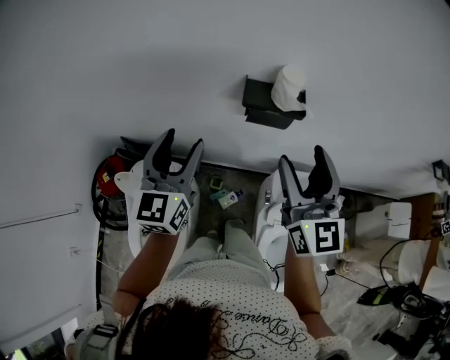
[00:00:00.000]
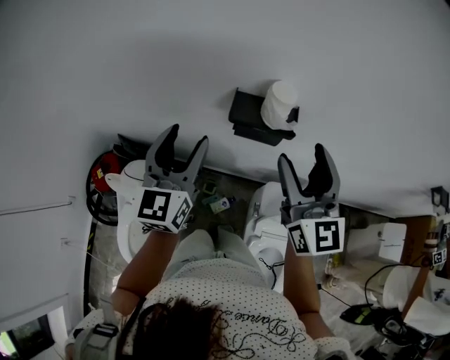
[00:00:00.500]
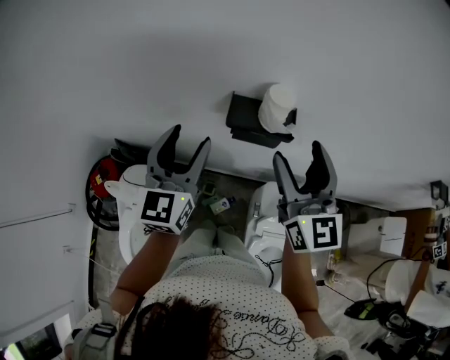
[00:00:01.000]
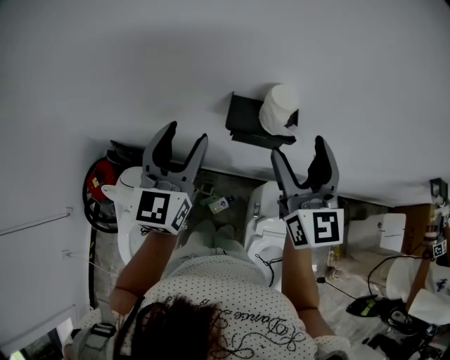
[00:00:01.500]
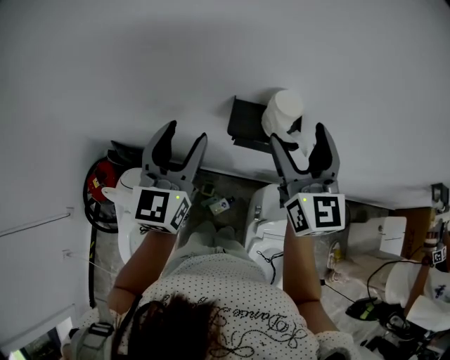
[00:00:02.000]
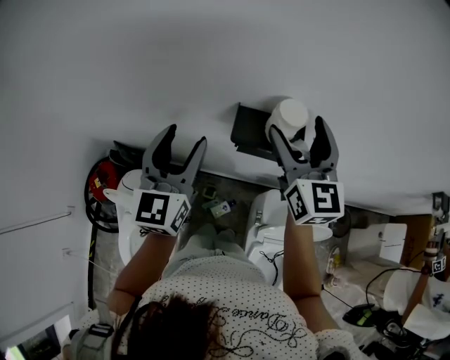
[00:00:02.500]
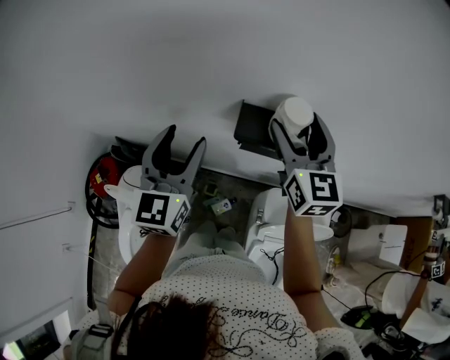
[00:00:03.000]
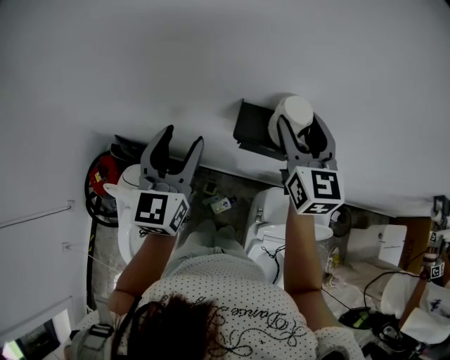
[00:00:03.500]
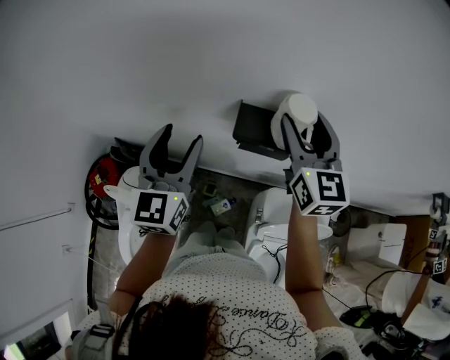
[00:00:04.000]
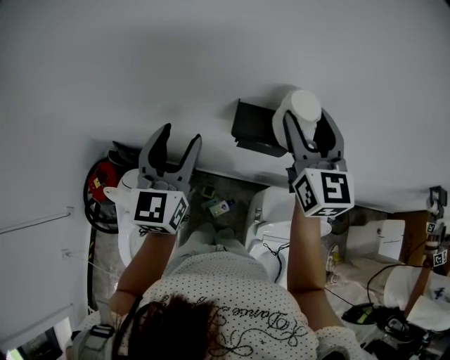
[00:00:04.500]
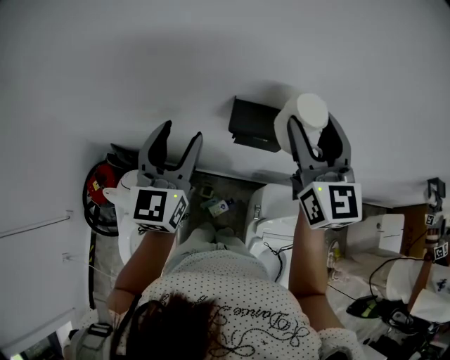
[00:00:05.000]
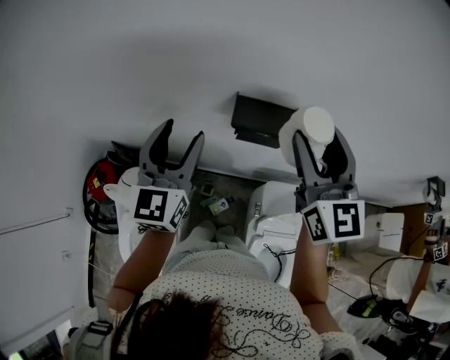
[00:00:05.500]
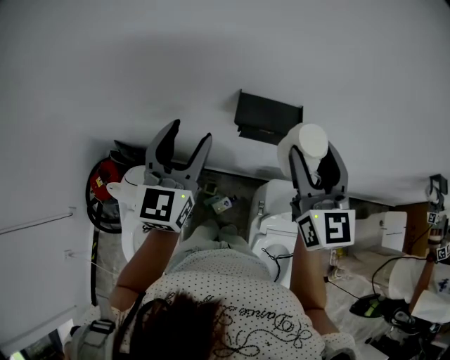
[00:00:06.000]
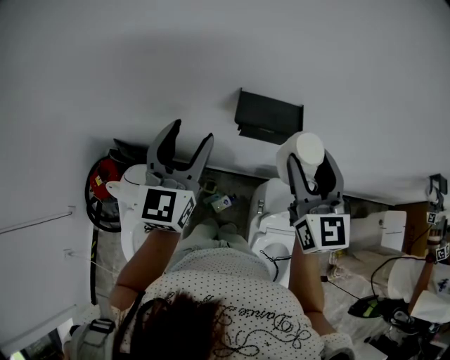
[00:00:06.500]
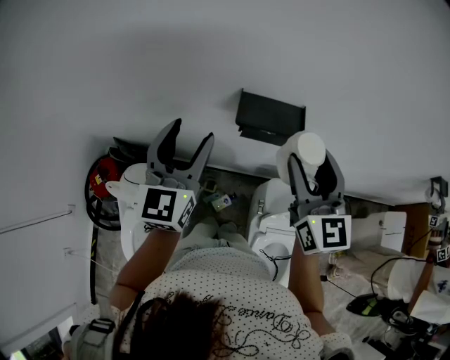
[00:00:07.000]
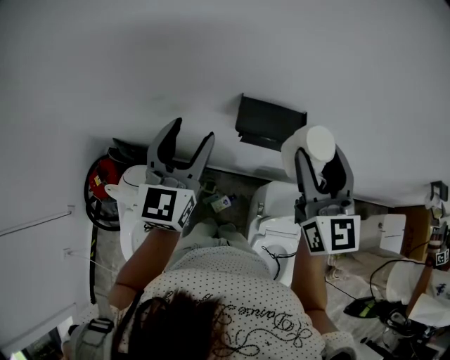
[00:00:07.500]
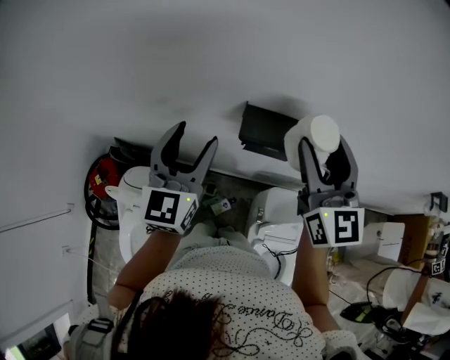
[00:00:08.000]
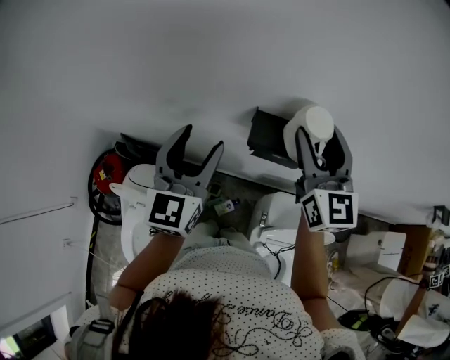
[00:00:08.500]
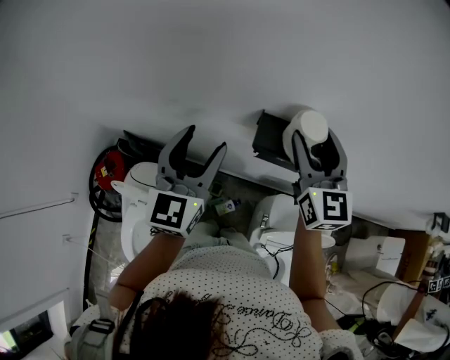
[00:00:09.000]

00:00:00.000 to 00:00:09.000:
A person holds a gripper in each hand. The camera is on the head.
00:00:00.000 to 00:00:02.000: The two grippers go roughly 10 cm forward.
00:00:02.000 to 00:00:04.500: The right gripper closes.
00:00:04.500 to 00:00:07.000: The right gripper heads backward, covering approximately 10 cm.
00:00:07.000 to 00:00:09.000: The right gripper moves forward, roughly 10 cm.

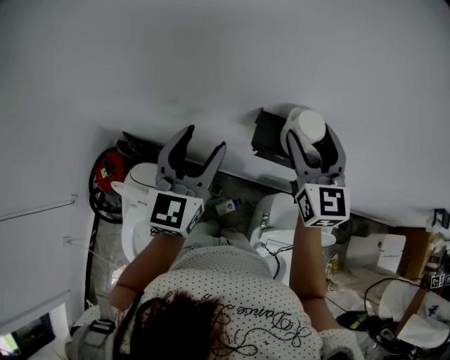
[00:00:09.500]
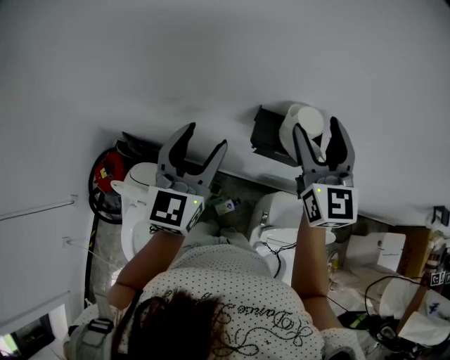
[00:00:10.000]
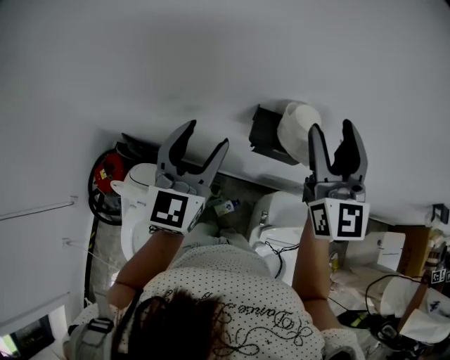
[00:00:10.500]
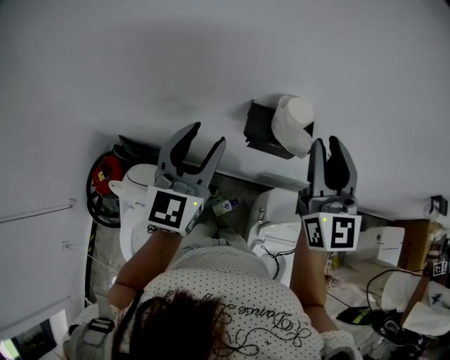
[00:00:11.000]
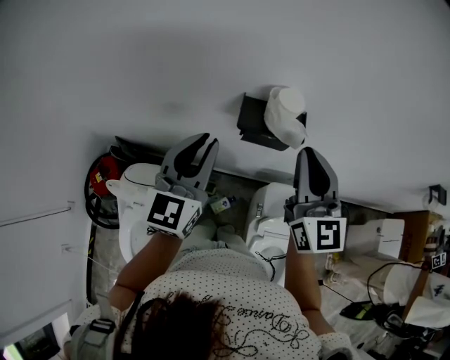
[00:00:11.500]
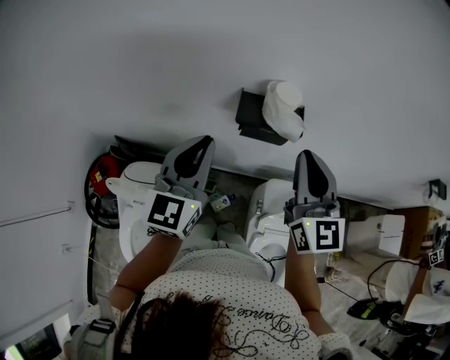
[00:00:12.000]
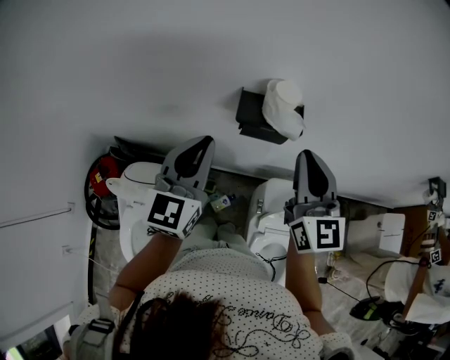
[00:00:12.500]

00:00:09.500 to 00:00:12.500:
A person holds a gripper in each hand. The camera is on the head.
00:00:09.500 to 00:00:11.000: The right gripper goes about 10 cm backward and upward, and closes up.
00:00:11.000 to 00:00:12.500: The left gripper closes up. Meanwhile the right gripper travels downward by approximately 5 cm.

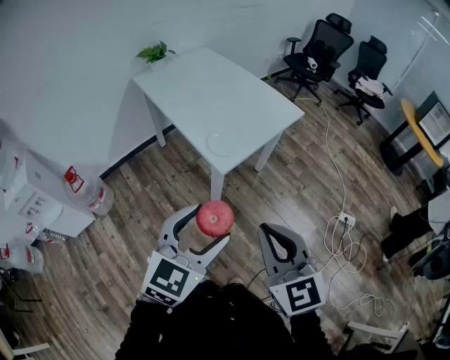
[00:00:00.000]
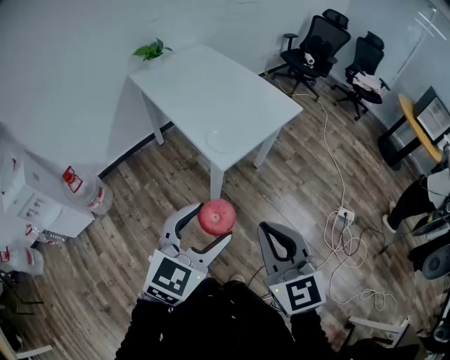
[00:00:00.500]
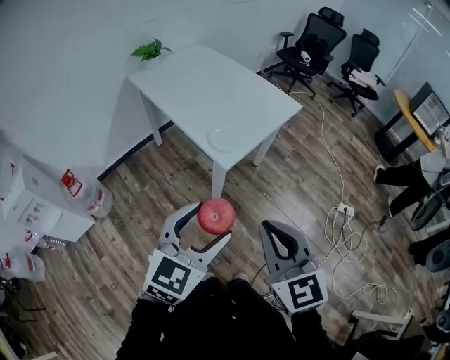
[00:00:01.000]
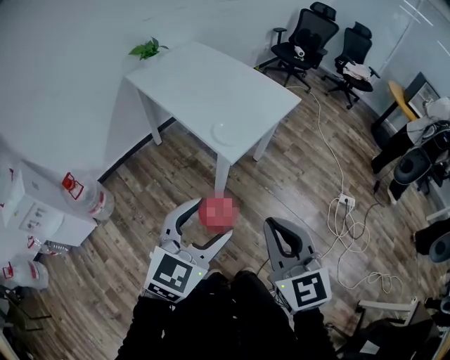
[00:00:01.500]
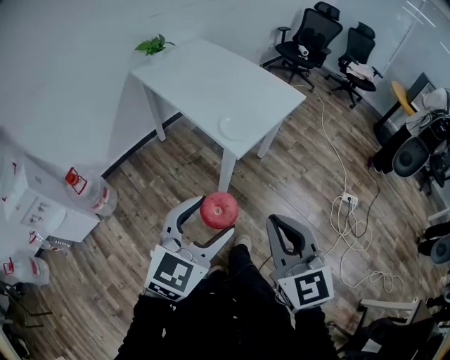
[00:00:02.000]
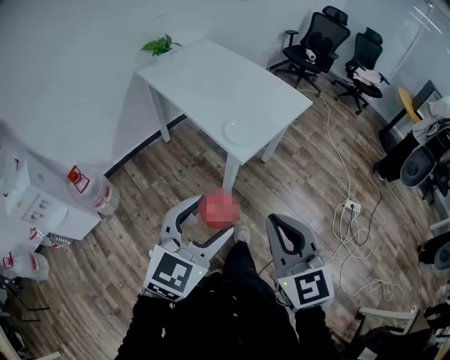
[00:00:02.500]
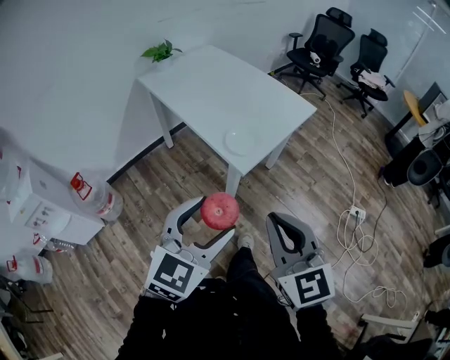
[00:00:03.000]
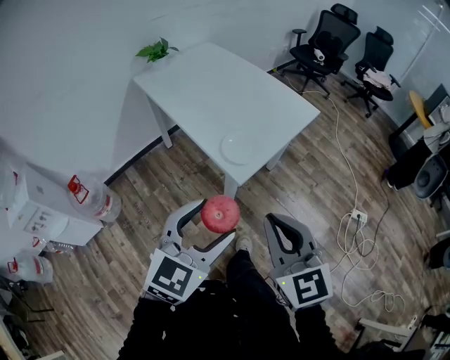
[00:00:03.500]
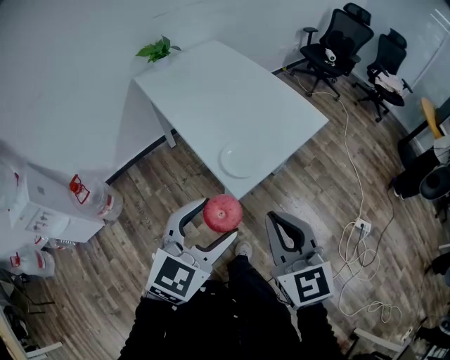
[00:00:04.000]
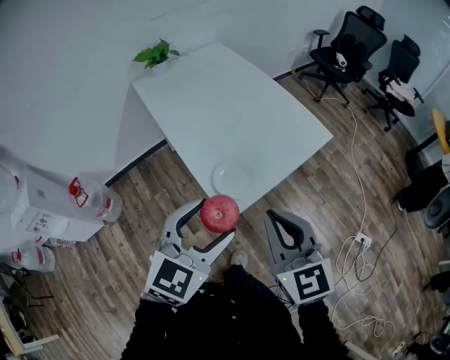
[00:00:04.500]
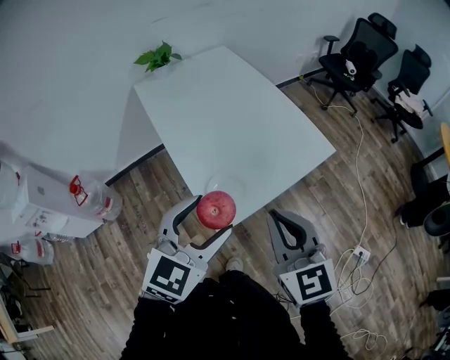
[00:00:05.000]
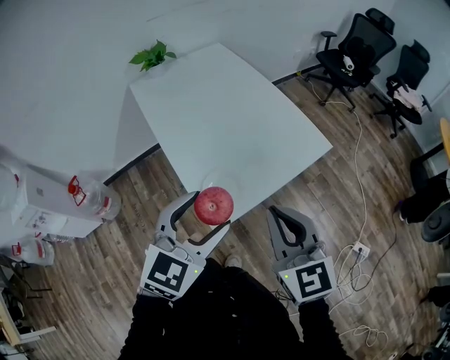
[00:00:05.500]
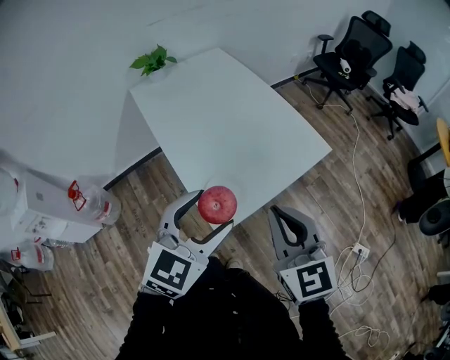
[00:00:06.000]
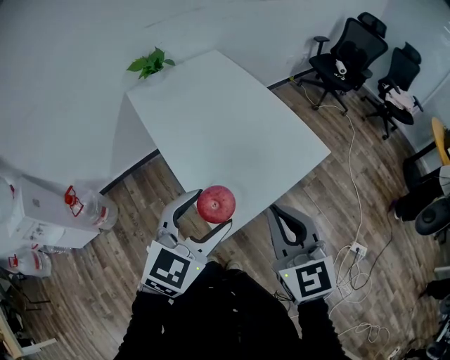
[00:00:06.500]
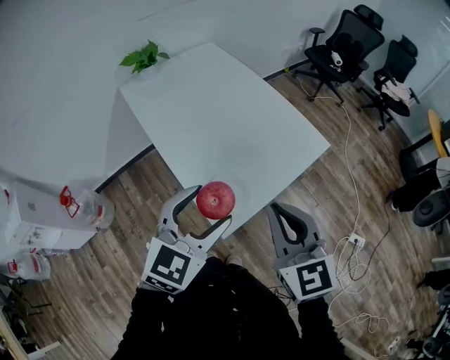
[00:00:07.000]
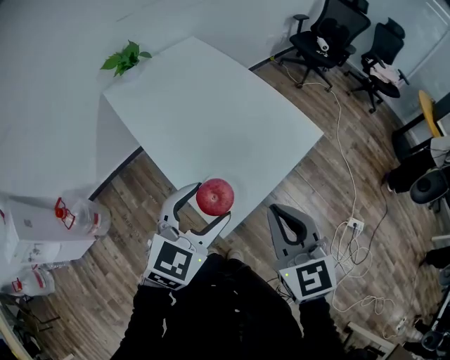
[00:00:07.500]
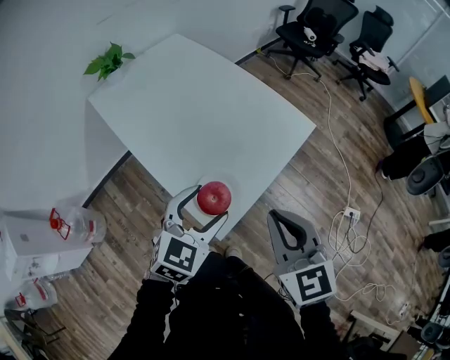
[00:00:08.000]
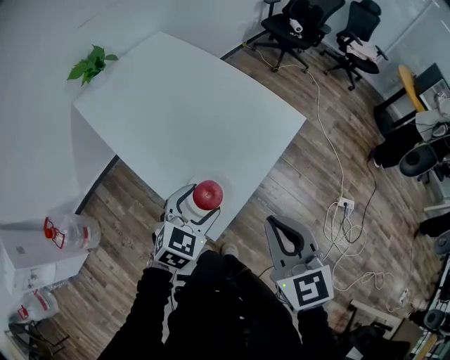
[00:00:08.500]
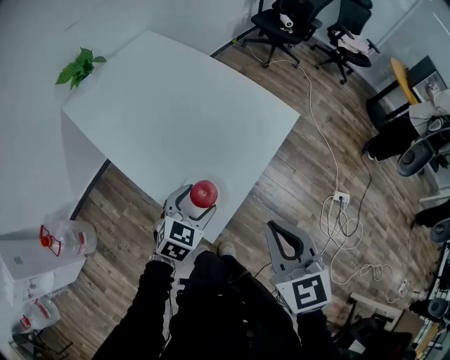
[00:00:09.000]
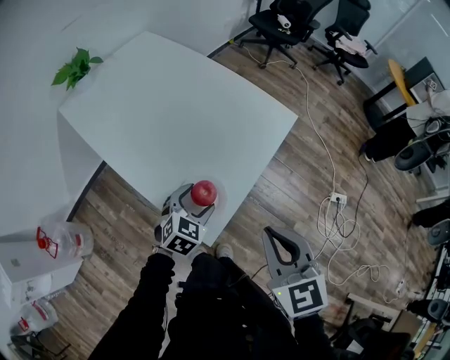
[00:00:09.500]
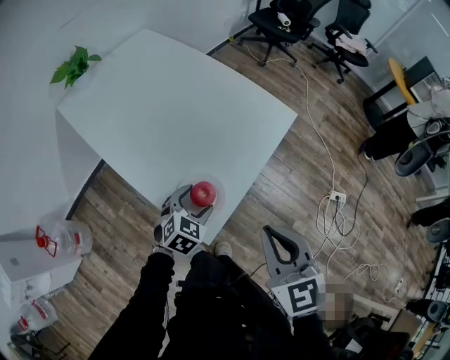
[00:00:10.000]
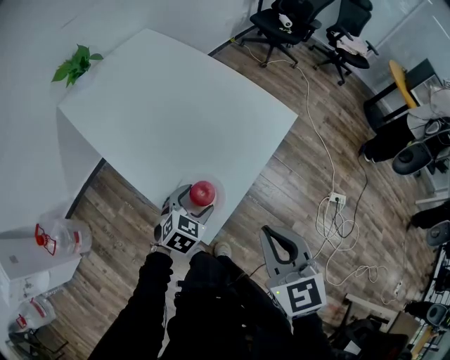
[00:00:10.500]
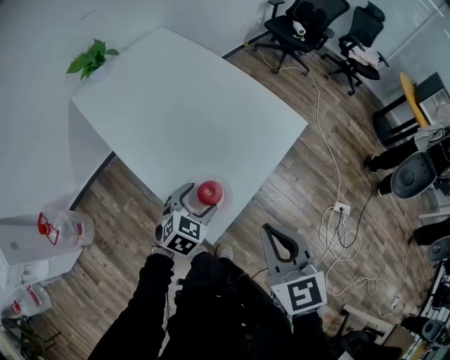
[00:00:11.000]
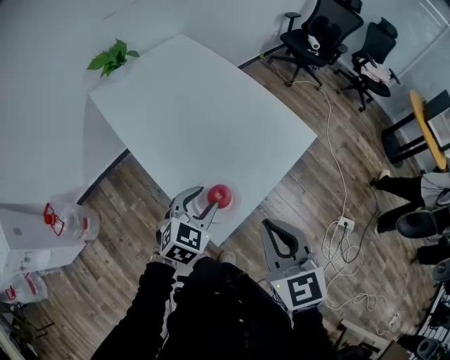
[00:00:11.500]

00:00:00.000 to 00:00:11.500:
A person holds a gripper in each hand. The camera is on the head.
00:00:00.000 to 00:00:02.000: The right gripper goes approximately 10 cm to the left and backward, while the left gripper heads to the left, covering about 5 cm.
00:00:02.000 to 00:00:04.000: The grippers both shift forward by about 20 cm.
00:00:04.000 to 00:00:06.000: The left gripper shifts about 15 cm forward. Meanwhile the right gripper is displaced forward and to the right by roughly 20 cm.
00:00:06.000 to 00:00:07.500: The left gripper moves approximately 5 cm.
00:00:07.500 to 00:00:09.500: The left gripper travels downward by approximately 20 cm, and rotates about 20 degrees. Meanwhile the right gripper shifts by roughly 5 cm.
00:00:09.500 to 00:00:11.500: The left gripper travels upward by approximately 10 cm, and closes.

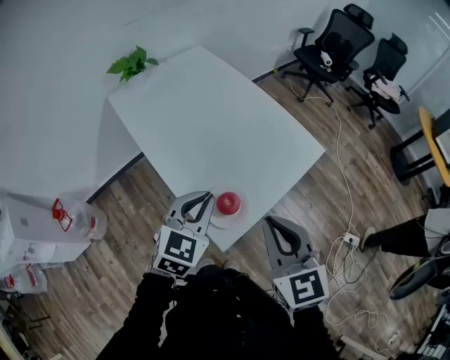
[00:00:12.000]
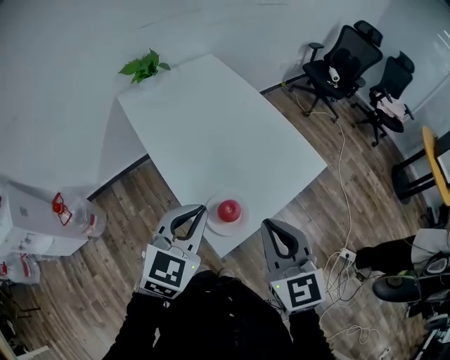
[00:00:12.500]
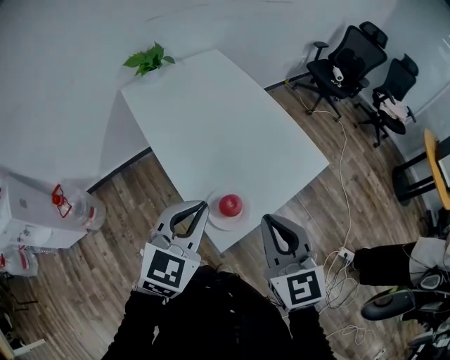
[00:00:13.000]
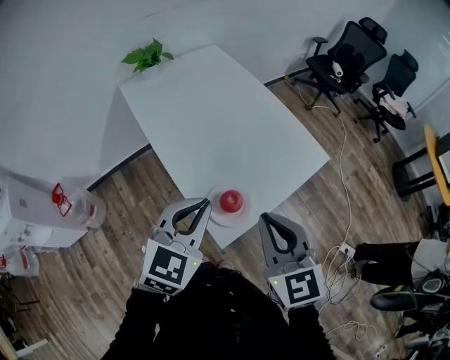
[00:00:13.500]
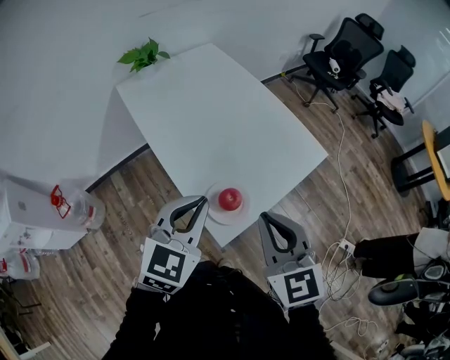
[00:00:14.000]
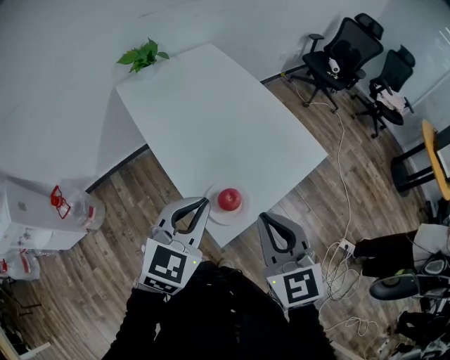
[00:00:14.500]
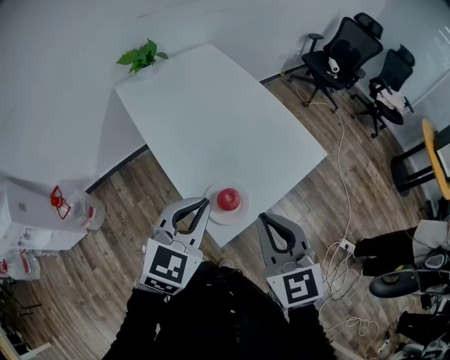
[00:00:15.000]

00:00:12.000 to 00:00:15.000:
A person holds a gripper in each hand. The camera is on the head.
00:00:12.000 to 00:00:13.500: The left gripper shifts approximately 5 cm upward.
00:00:13.500 to 00:00:15.000: Neither gripper changes place.
